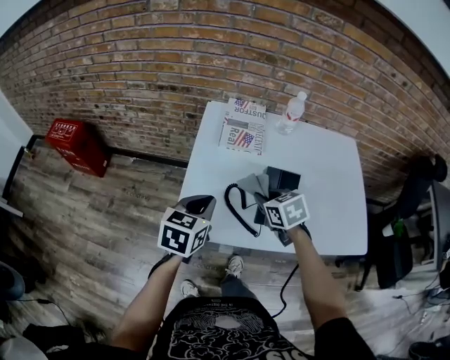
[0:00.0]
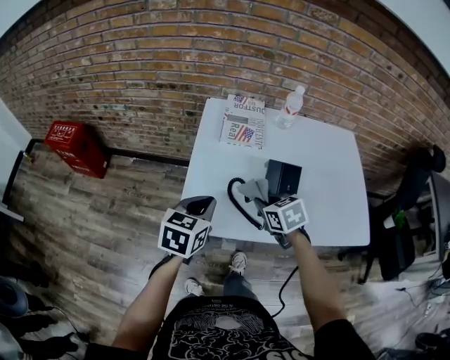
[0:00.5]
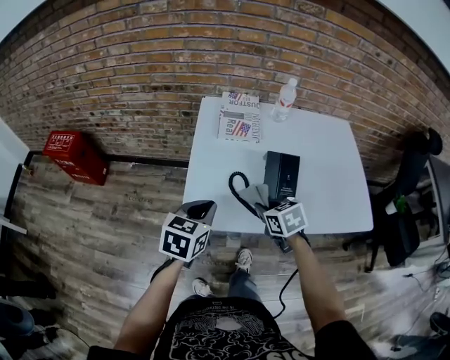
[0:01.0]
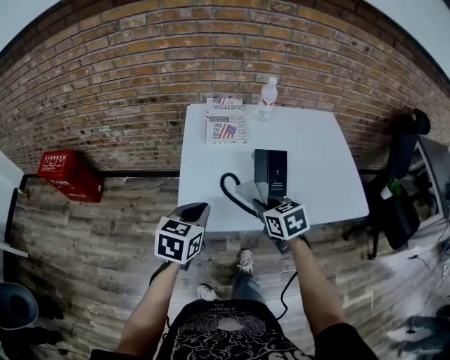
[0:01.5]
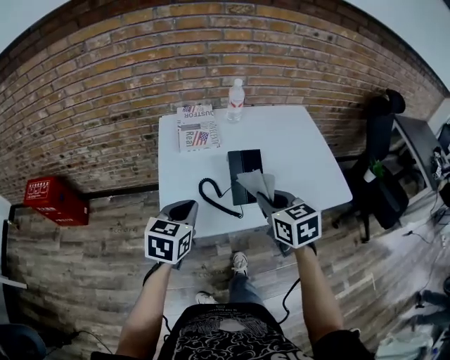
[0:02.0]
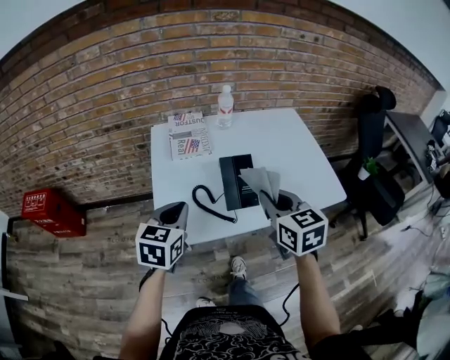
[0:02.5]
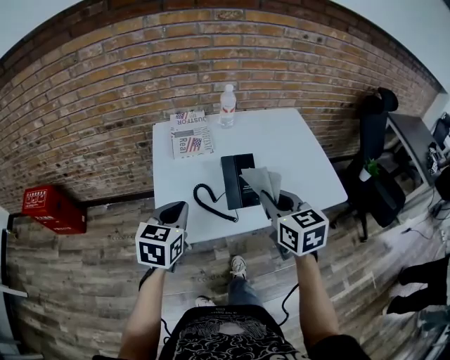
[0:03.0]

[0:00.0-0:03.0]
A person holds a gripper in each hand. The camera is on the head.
0:00.0 to 0:01.5: The right gripper travels backward by some 10 cm. Meanwhile the left gripper heads backward, covering about 5 cm.
0:01.5 to 0:03.0: The left gripper moves roughly 5 cm, while the right gripper travels upward and to the right by about 15 cm, and rotates roughly 30 degrees.

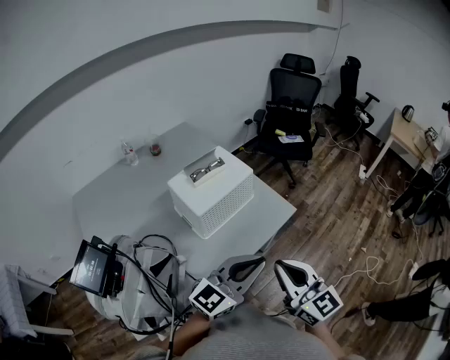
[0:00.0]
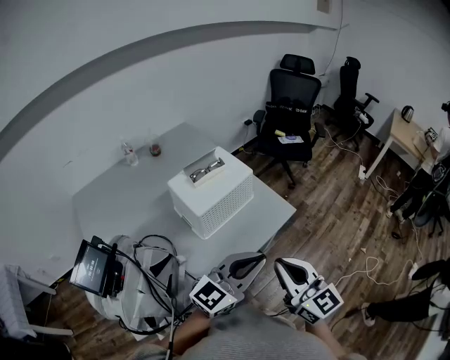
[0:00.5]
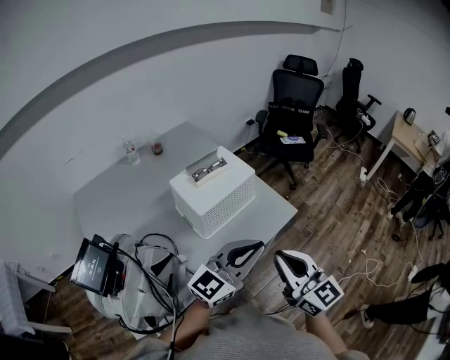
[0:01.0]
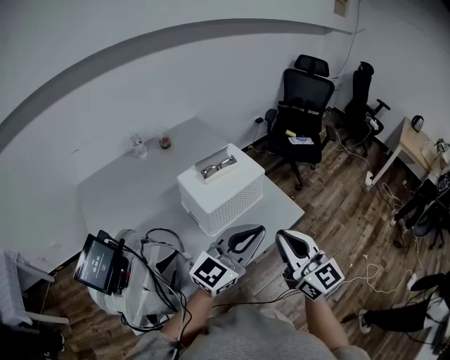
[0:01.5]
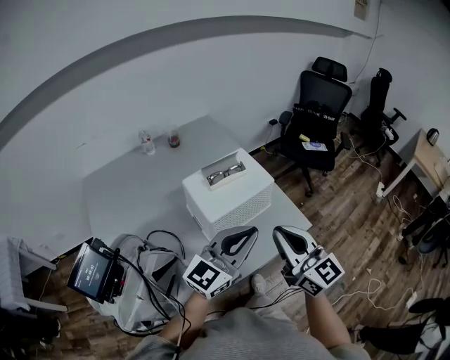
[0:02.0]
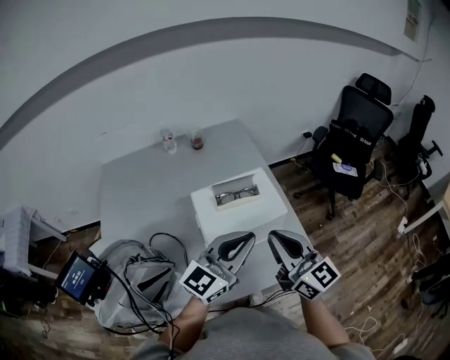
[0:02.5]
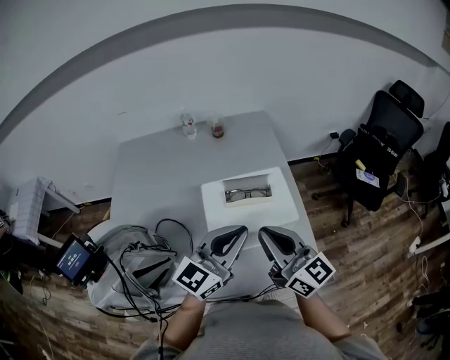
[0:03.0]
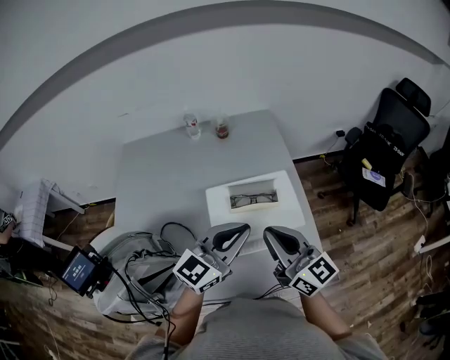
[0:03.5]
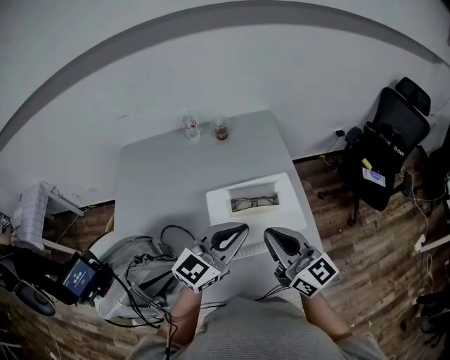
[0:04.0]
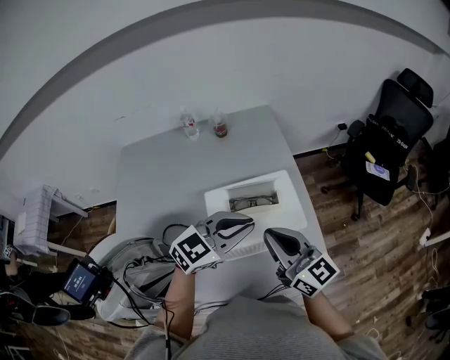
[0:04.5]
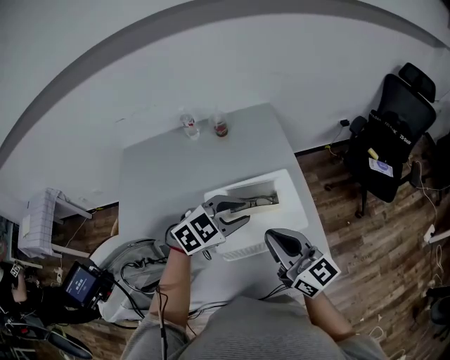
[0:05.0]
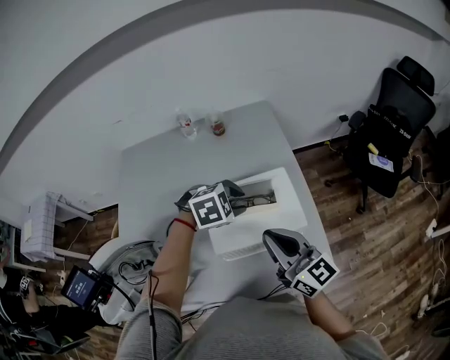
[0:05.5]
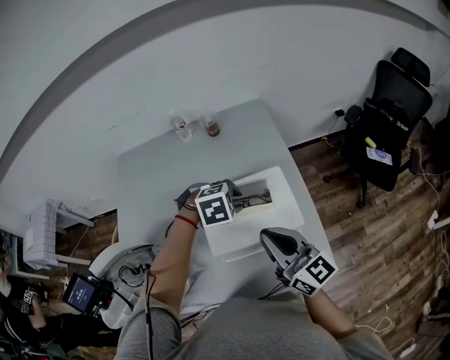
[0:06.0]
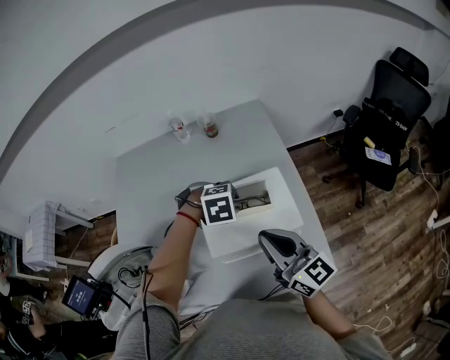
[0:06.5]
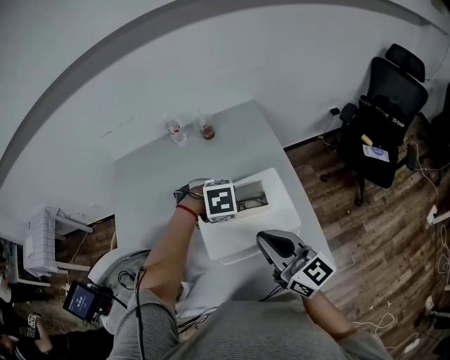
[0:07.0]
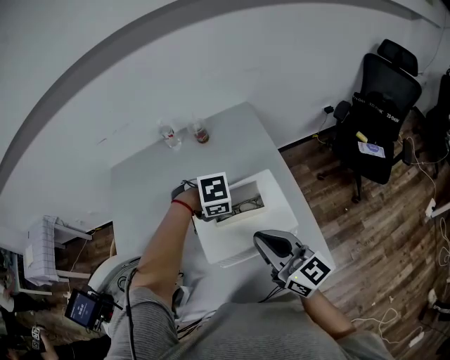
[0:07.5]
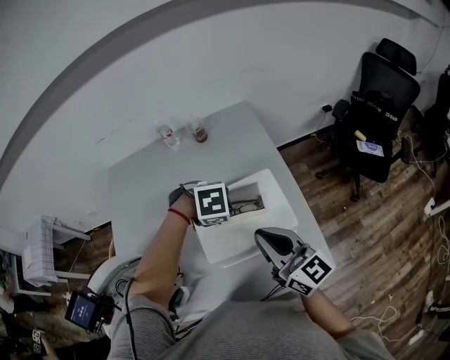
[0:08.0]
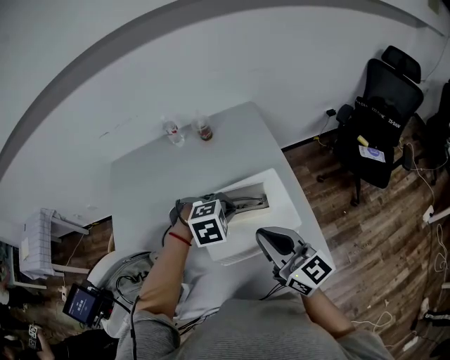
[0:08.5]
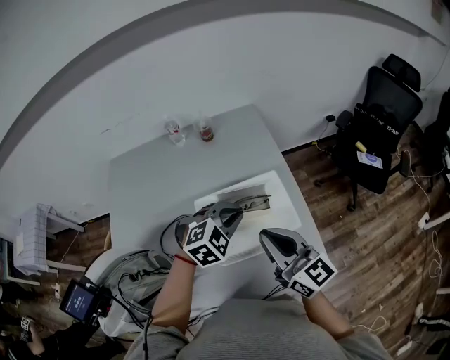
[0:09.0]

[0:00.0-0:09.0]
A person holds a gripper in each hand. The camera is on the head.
0:00.0 to 0:02.0: The right gripper goes approximately 15 cm forward. The left gripper travels forward and to the left by some 15 cm.
0:02.0 to 0:04.5: The left gripper shifts by approximately 20 cm, and rotates roughly 30 degrees. The right gripper changes place by about 20 cm, and rotates about 30 degrees.
0:04.5 to 0:07.0: The left gripper shifts some 15 cm downward, and points its fingers some 70 degrees further downward.
0:07.0 to 0:09.0: The left gripper travels upward by about 5 cm, and tilts its fingers about 40 degrees upward.

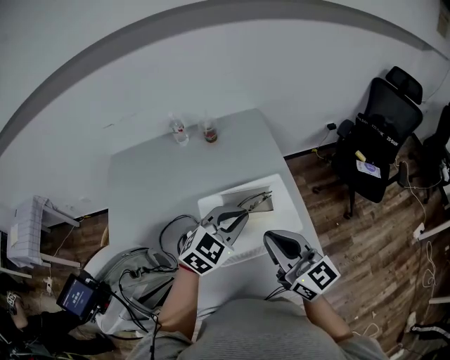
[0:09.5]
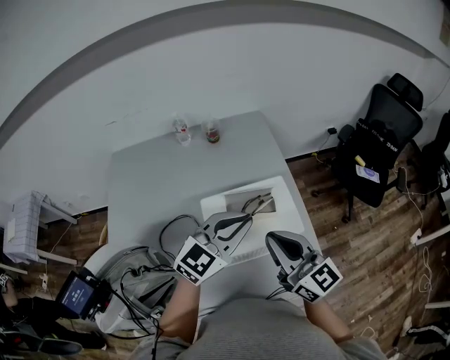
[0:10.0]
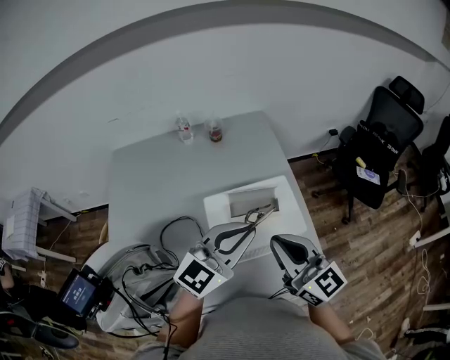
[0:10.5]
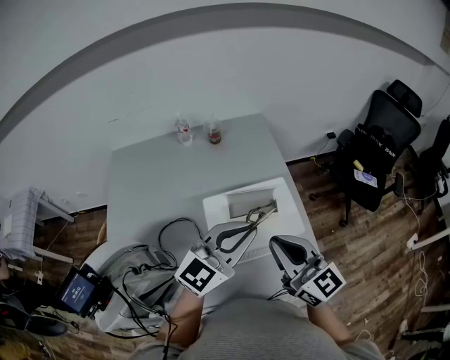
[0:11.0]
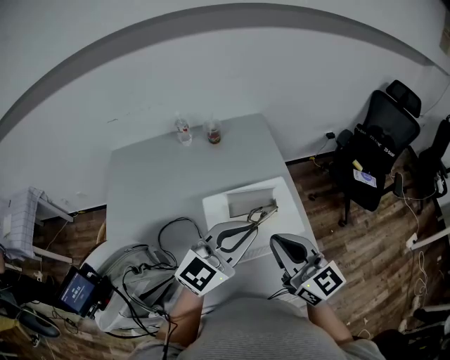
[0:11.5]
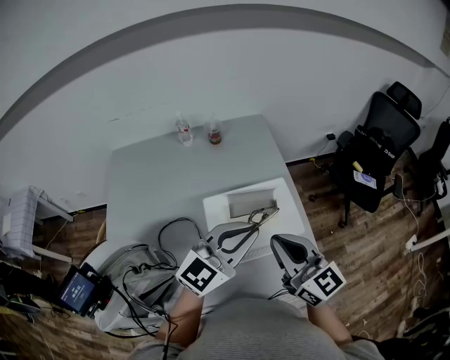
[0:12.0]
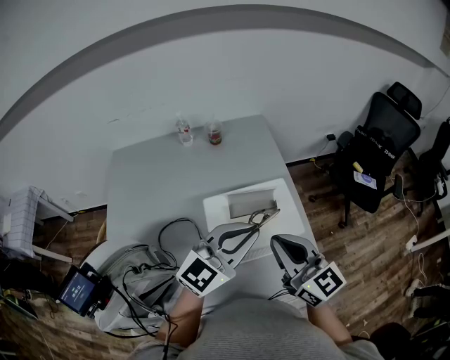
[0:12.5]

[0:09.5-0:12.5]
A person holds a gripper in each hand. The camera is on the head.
0:09.5 to 0:11.0: The left gripper is displaced upward and backward by roughly 10 cm, and swivels some 30 degrees.
0:11.0 to 0:12.5: Neither gripper changes place.

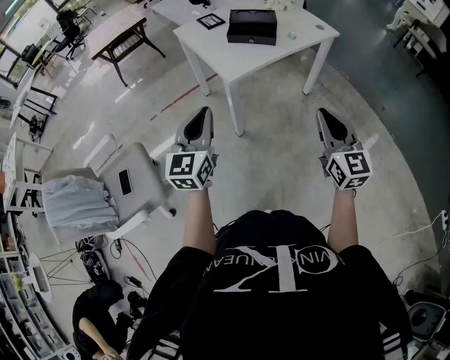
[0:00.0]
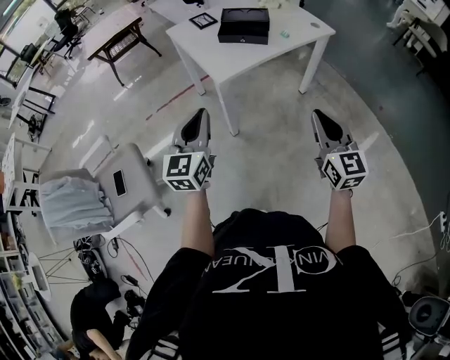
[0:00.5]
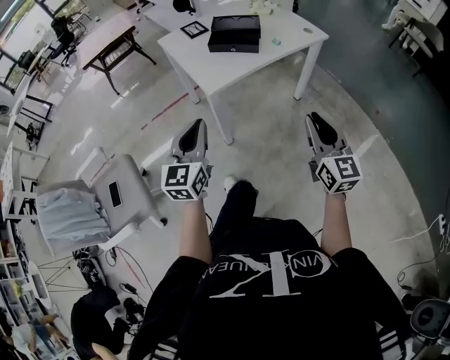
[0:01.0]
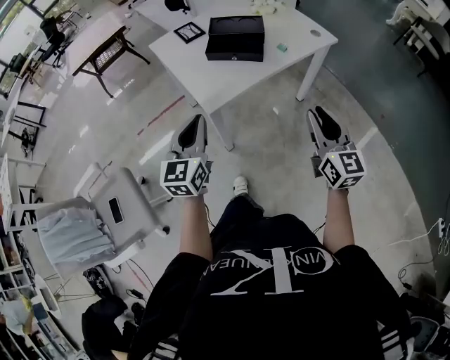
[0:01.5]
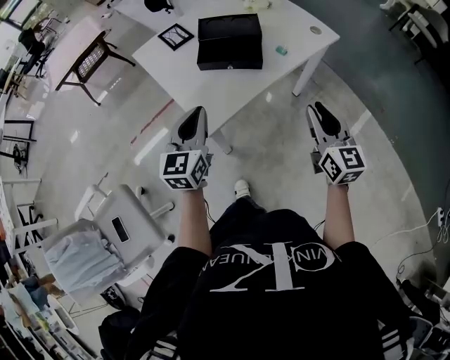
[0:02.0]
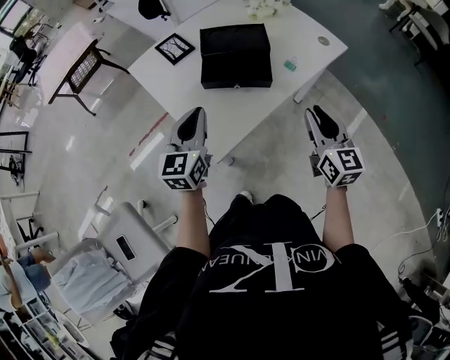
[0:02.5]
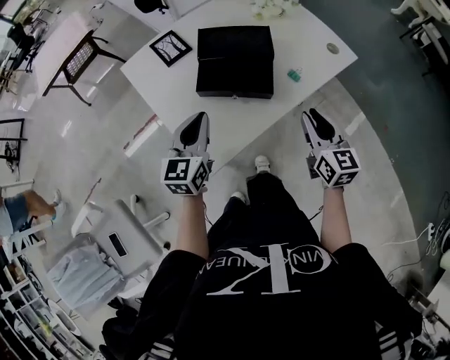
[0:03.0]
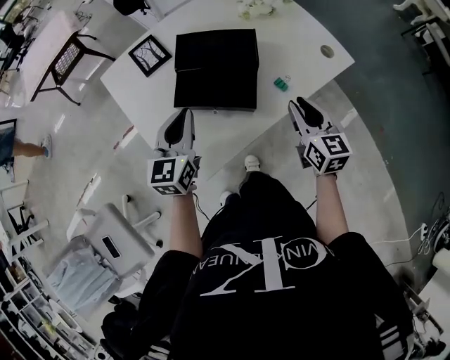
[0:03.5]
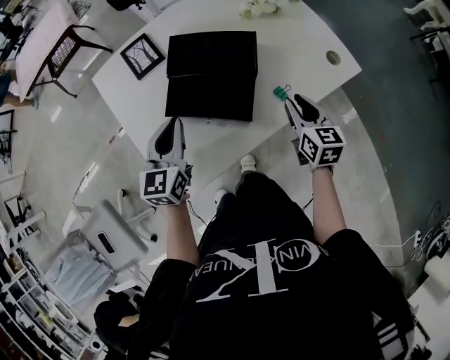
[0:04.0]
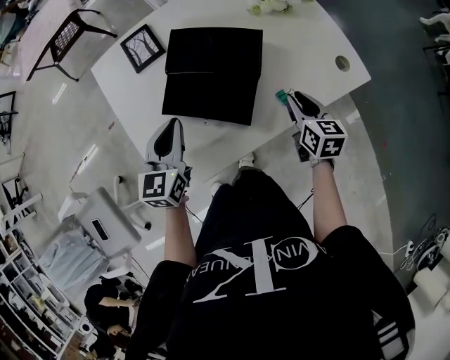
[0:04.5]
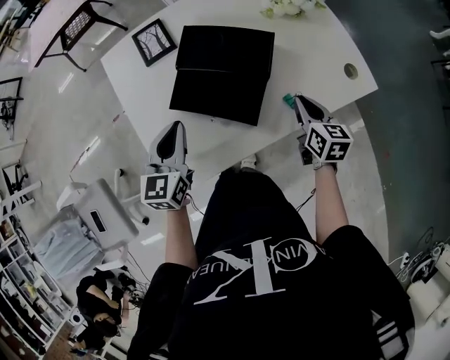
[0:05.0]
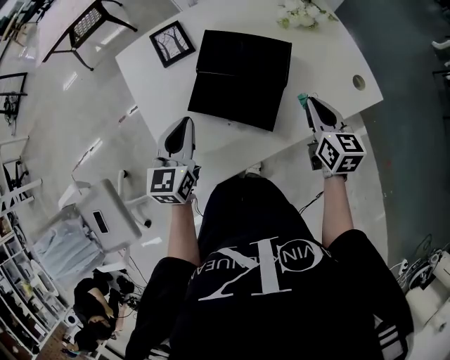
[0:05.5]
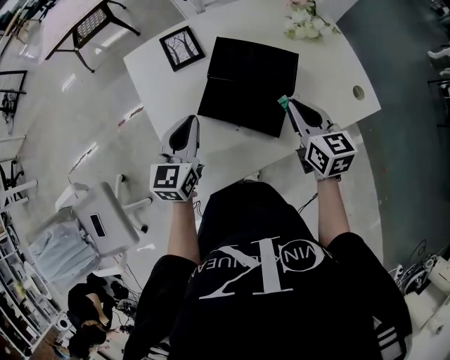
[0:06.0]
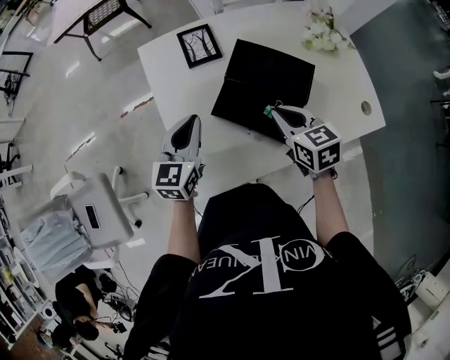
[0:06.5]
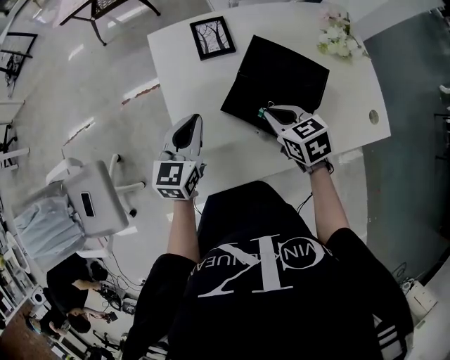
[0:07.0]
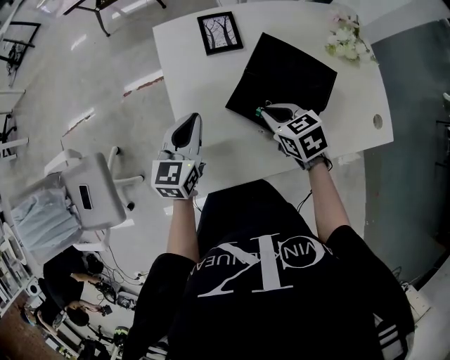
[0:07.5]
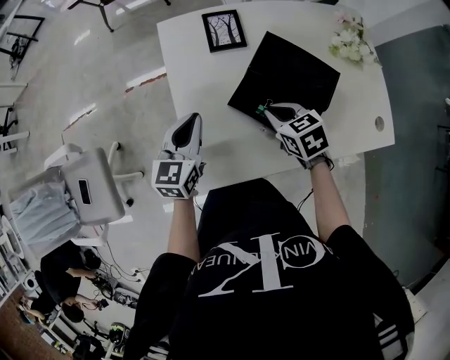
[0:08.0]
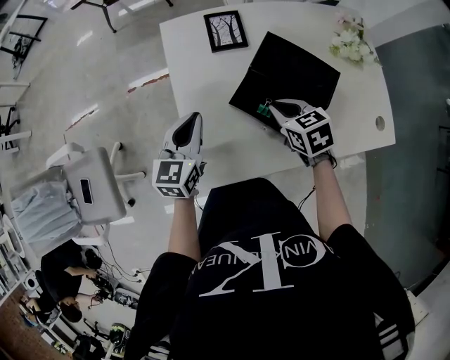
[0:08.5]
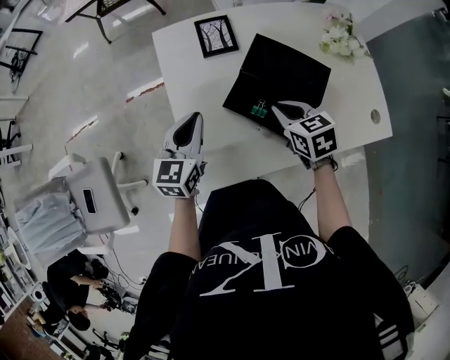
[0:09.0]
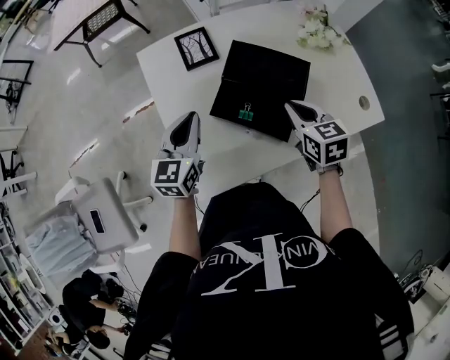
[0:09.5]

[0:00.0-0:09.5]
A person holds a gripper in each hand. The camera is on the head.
0:00.0 to 0:02.0: Both grippers move forward, about 30 cm.
0:02.0 to 0:04.0: The left gripper heads forward, covering some 20 cm, while the right gripper moves forward and downward, some 35 cm, and swivels about 20 degrees.
0:04.0 to 0:05.5: The right gripper changes place by some 5 cm.
0:05.5 to 0:07.5: The left gripper moves to the left, approximately 10 cm. The right gripper travels to the left by approximately 20 cm, and rotates some 50 degrees.
0:07.5 to 0:09.5: The right gripper is displaced to the right and upward by about 10 cm, and swivels approximately 30 degrees, while the left gripper ends up approximately 5 cm from where it was.

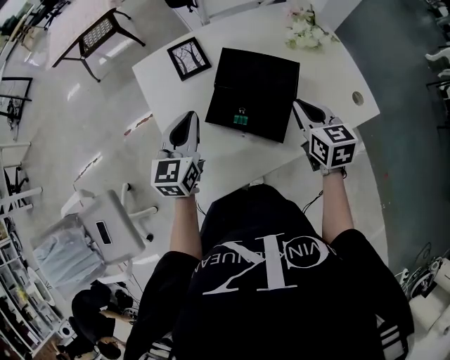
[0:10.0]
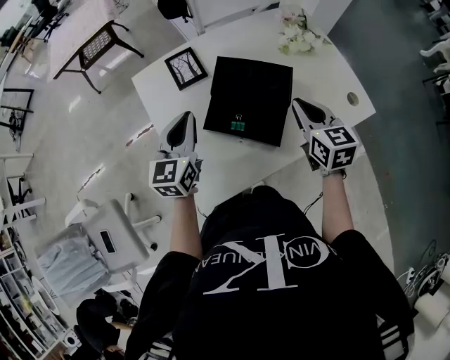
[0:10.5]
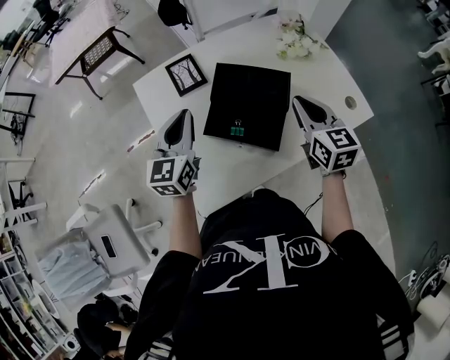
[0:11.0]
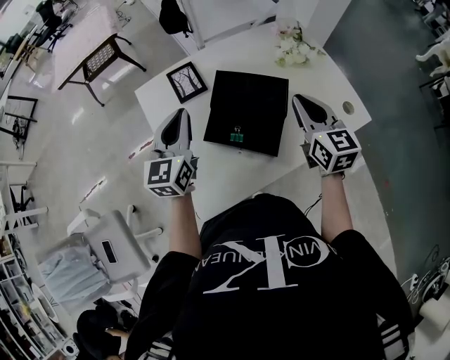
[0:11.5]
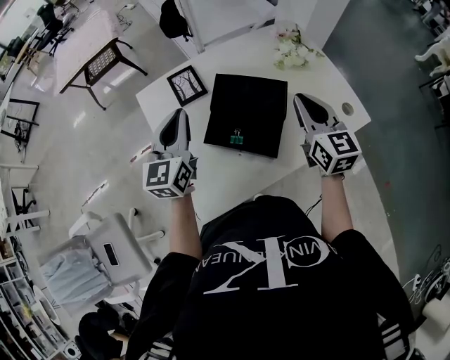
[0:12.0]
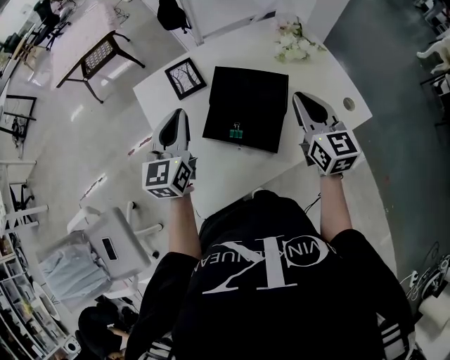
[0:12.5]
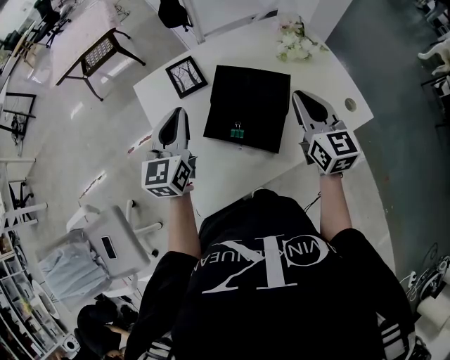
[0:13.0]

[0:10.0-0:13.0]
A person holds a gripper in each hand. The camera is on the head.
0:10.0 to 0:11.5: The grippers both shift upward by some 10 cm.
0:11.5 to 0:13.0: The grippers make only small movements.
